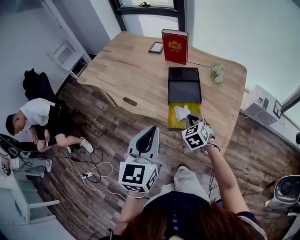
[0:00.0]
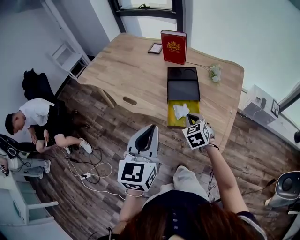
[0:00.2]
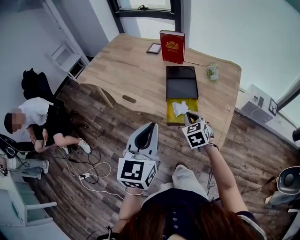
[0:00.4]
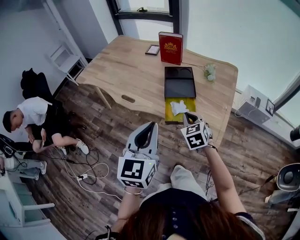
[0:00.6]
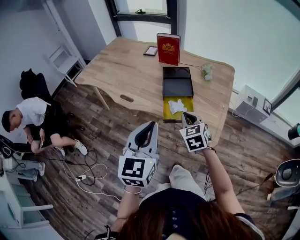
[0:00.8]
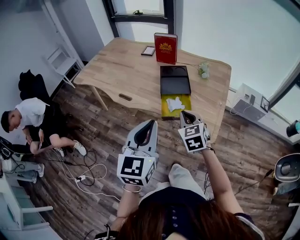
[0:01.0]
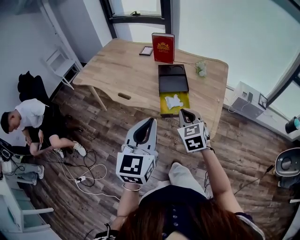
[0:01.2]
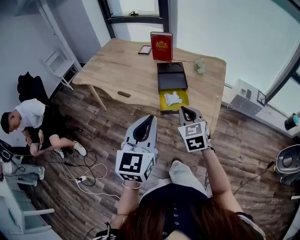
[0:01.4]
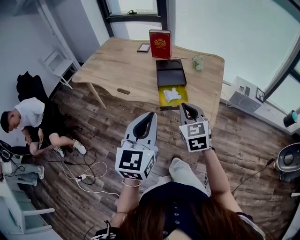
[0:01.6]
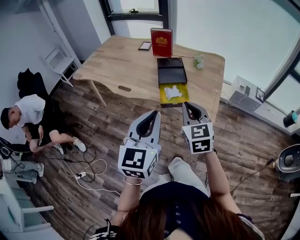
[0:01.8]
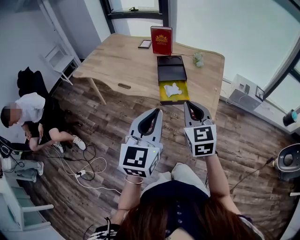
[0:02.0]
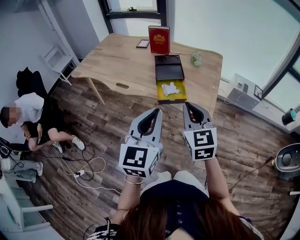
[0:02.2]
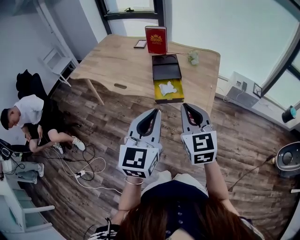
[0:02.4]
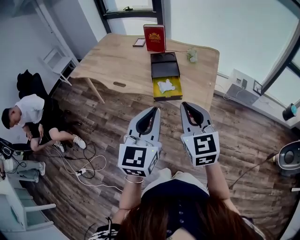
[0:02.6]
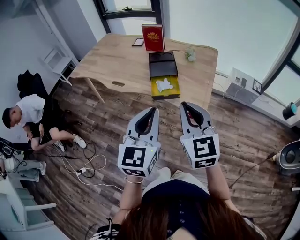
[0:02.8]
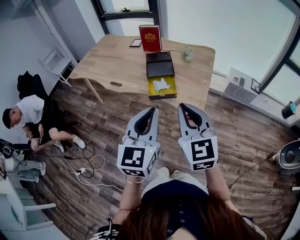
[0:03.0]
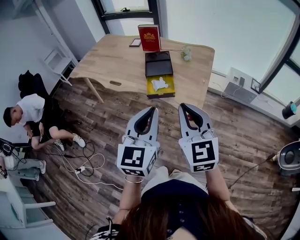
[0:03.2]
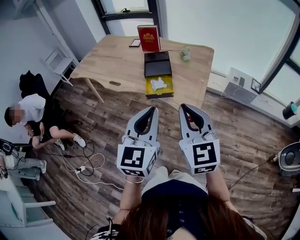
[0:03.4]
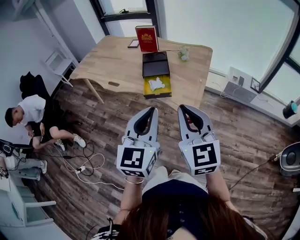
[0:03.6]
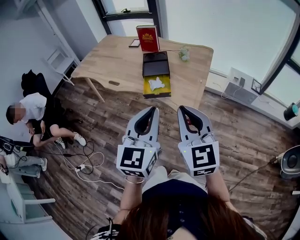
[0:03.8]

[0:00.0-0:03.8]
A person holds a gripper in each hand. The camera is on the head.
0:00.0 to 0:01.2: The right gripper shifts some 15 cm backward and upward. Meanwhile the left gripper moves backward, some 10 cm.
0:01.2 to 0:02.6: The left gripper is displaced backward and to the right by roughly 10 cm. Meanwhile the right gripper is displaced backward and upward by about 20 cm.
0:02.6 to 0:03.8: The left gripper is displaced to the right by about 10 cm, while the right gripper moves to the right and backward, roughly 10 cm.

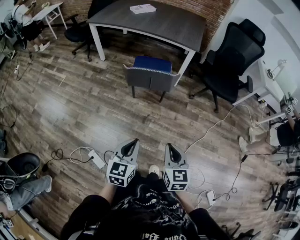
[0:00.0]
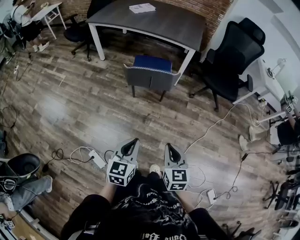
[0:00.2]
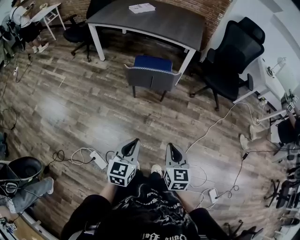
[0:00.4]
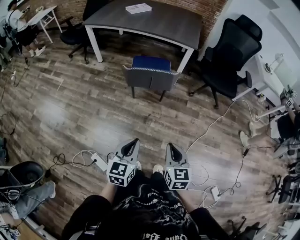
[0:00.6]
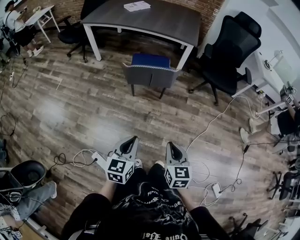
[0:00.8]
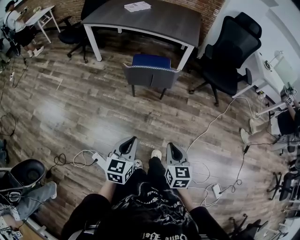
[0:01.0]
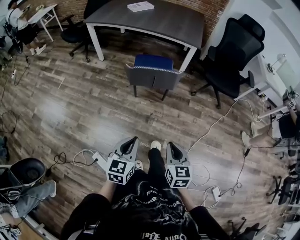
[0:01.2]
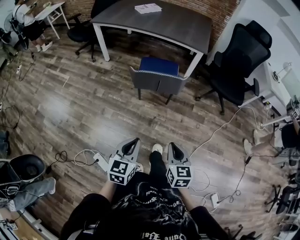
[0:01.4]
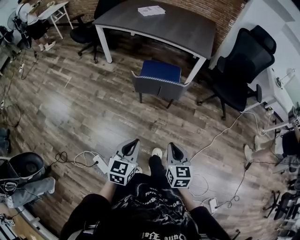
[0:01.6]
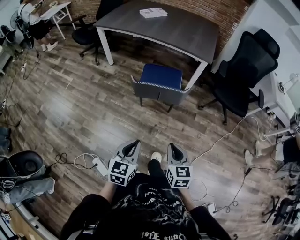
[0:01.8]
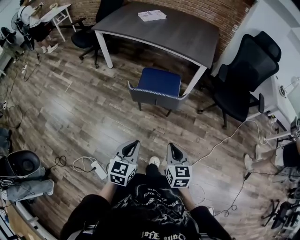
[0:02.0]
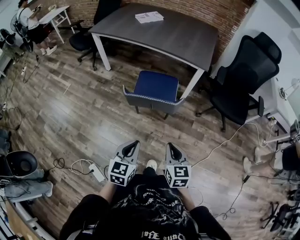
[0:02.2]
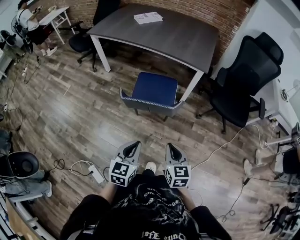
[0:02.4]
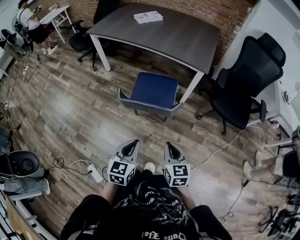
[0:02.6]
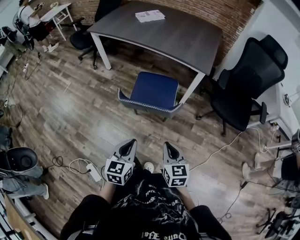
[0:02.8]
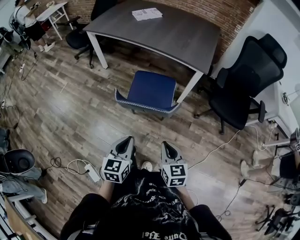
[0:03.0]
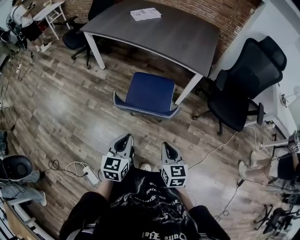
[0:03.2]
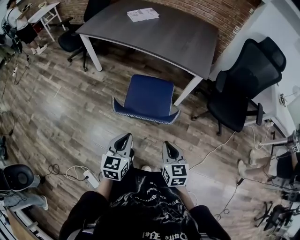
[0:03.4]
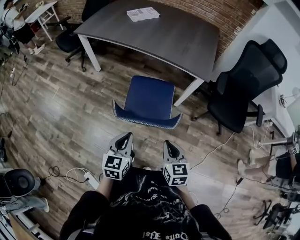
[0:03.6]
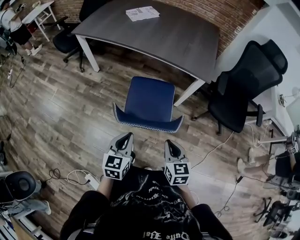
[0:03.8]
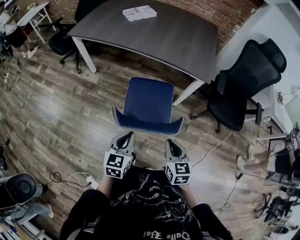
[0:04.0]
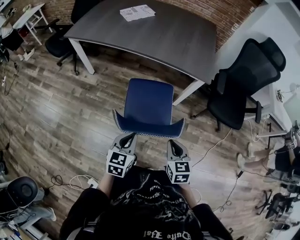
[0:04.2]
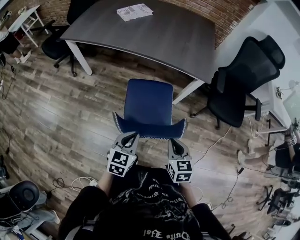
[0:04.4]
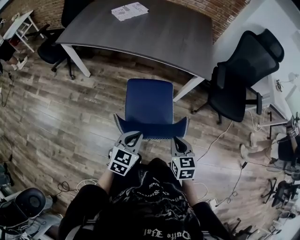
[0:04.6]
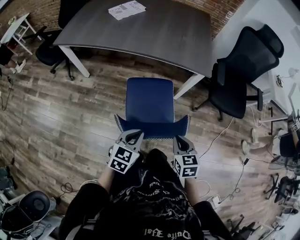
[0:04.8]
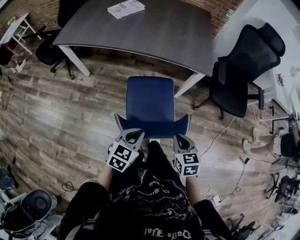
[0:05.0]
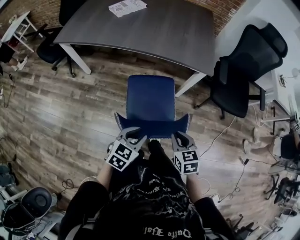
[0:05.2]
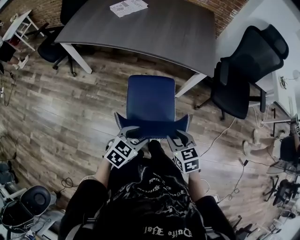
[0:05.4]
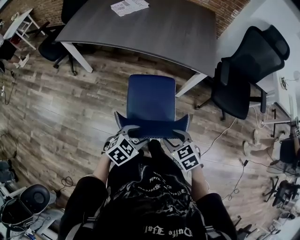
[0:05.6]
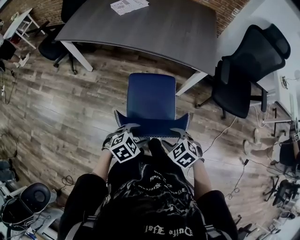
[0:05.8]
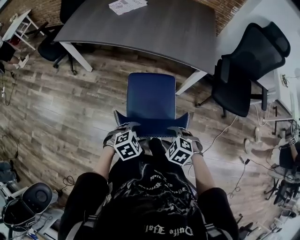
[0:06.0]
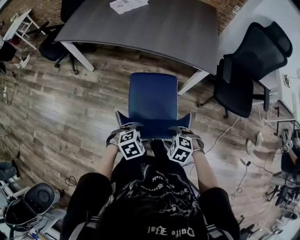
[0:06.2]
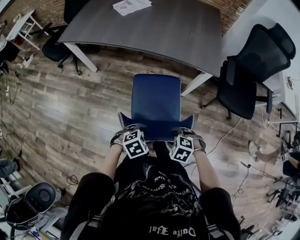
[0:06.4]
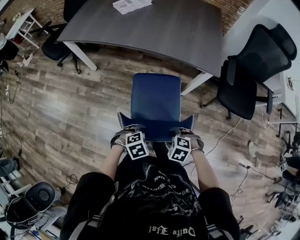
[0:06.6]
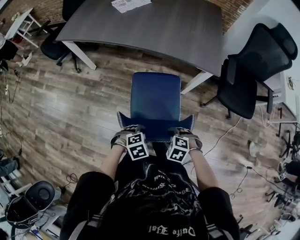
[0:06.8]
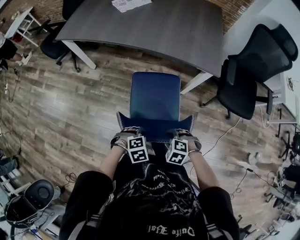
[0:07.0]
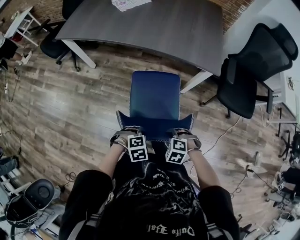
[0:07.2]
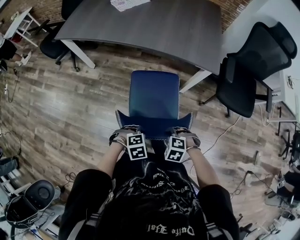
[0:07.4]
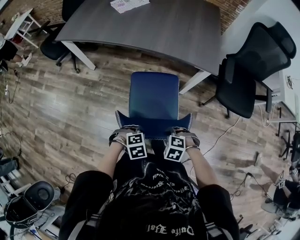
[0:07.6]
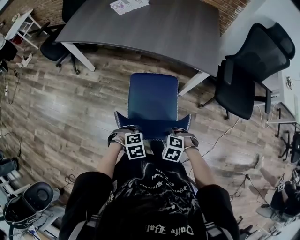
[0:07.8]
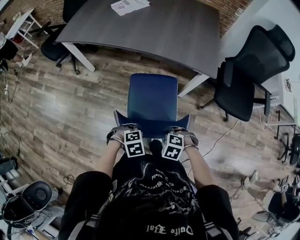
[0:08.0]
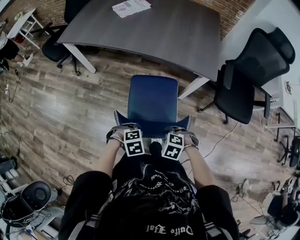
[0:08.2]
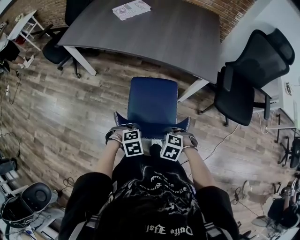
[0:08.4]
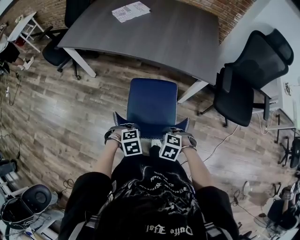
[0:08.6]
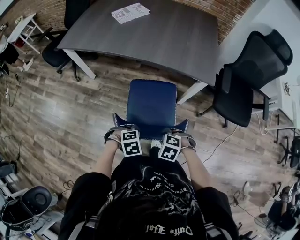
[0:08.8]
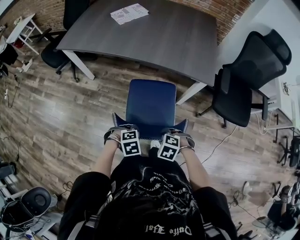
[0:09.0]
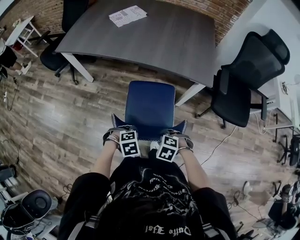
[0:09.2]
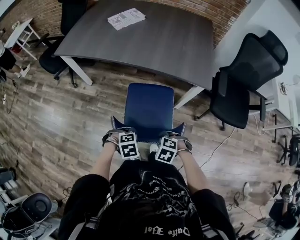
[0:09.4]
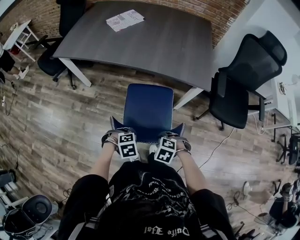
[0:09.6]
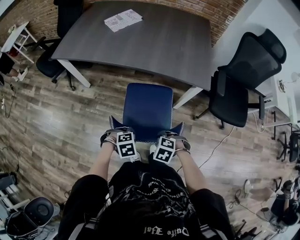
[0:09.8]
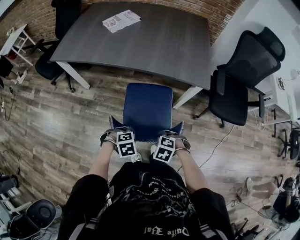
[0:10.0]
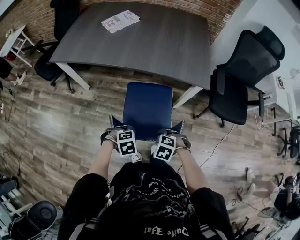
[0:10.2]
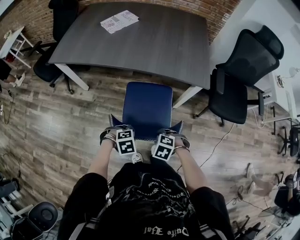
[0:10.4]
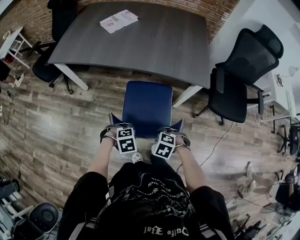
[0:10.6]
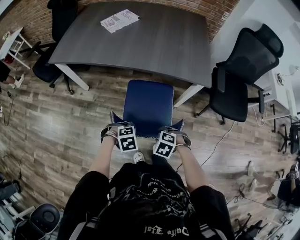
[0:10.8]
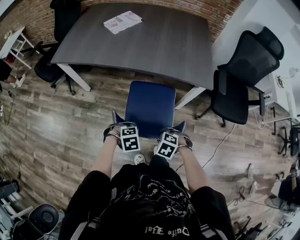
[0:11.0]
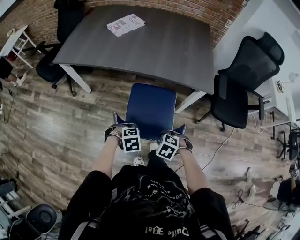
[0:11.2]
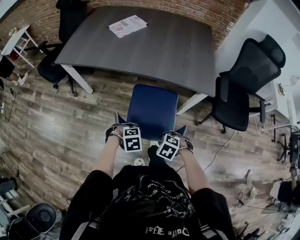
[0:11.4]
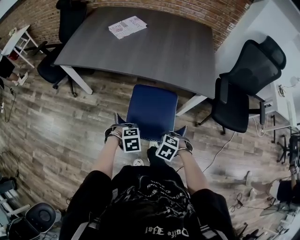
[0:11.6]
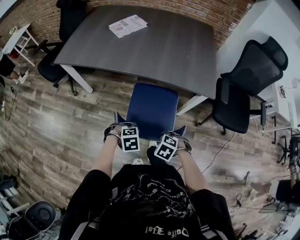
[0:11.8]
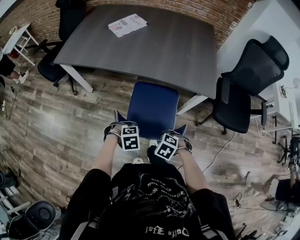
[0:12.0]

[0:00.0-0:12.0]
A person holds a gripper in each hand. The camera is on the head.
0:00.0 to 0:01.6: Both grippers move forward, some 5 cm.
0:01.6 to 0:03.0: Both grippers travel together forward, some 20 cm.
0:03.0 to 0:04.4: The grippers both shift forward by approximately 15 cm. The left gripper rotates some 20 degrees.
0:04.4 to 0:06.0: The two grippers go roughly 5 cm downward. The left gripper tilts its fingers approximately 30 degrees downward, and opens its fingers. Meanwhile the right gripper points its fingers approximately 30 degrees further downward, and opens up.
0:06.0 to 0:07.6: The two grippers go some 5 cm downward. The left gripper closes. Meanwhile the right gripper closes its fingers.
0:07.6 to 0:09.0: The right gripper ends up about 5 cm from where it was. Meanwhile the left gripper ends up approximately 5 cm from where it was.
0:09.0 to 0:10.4: The right gripper moves about 5 cm, while the left gripper changes place by about 5 cm.
0:10.4 to 0:12.0: The grippers stay close to where they were, moving slightly.

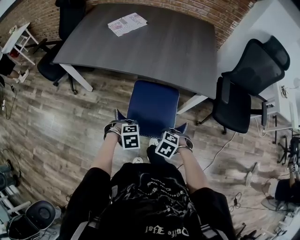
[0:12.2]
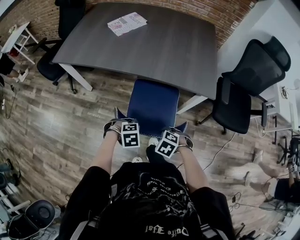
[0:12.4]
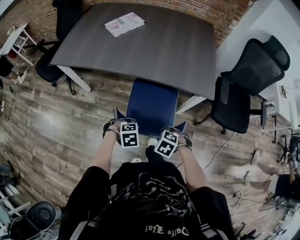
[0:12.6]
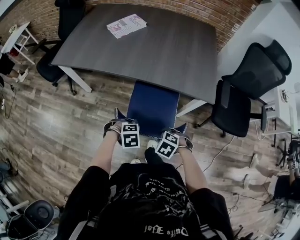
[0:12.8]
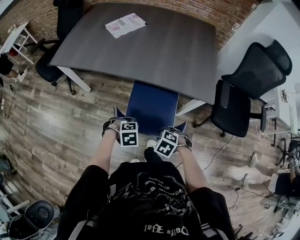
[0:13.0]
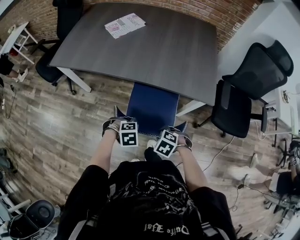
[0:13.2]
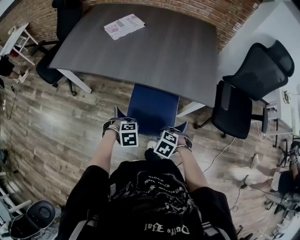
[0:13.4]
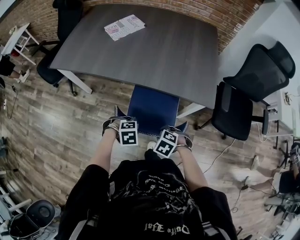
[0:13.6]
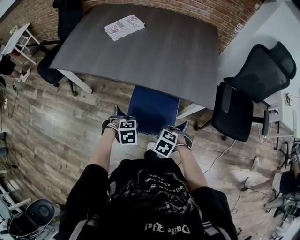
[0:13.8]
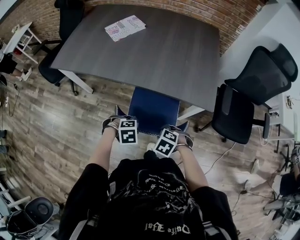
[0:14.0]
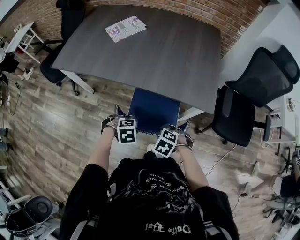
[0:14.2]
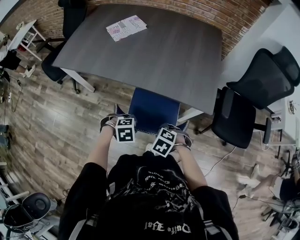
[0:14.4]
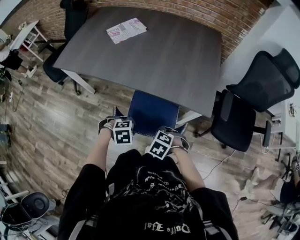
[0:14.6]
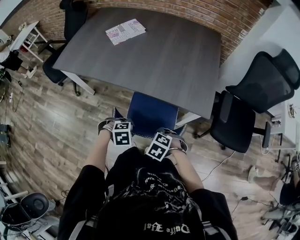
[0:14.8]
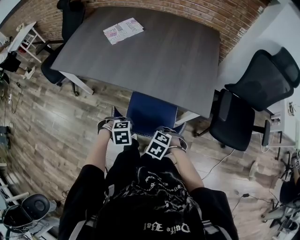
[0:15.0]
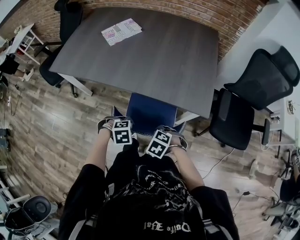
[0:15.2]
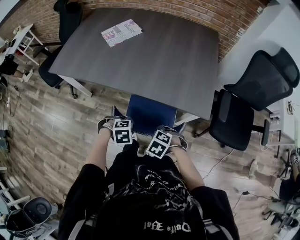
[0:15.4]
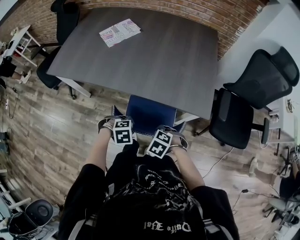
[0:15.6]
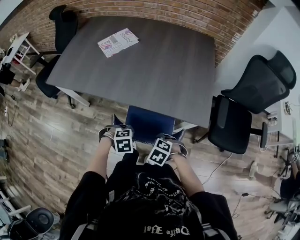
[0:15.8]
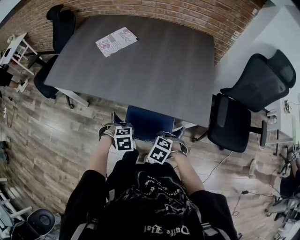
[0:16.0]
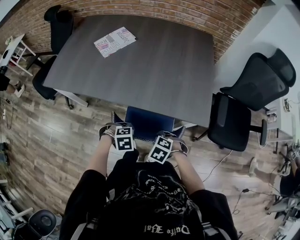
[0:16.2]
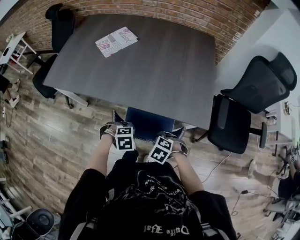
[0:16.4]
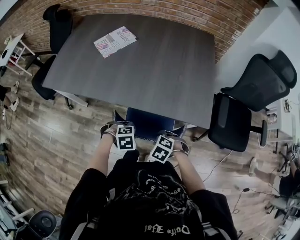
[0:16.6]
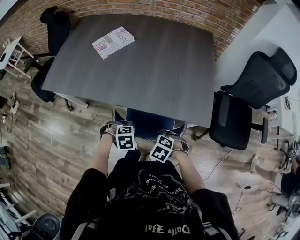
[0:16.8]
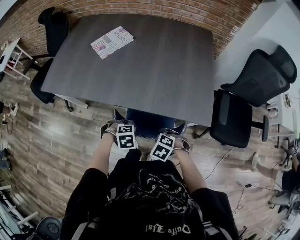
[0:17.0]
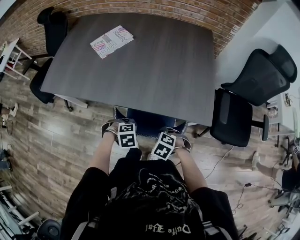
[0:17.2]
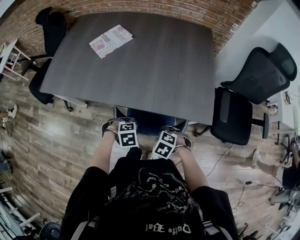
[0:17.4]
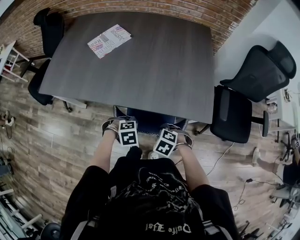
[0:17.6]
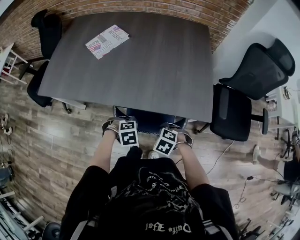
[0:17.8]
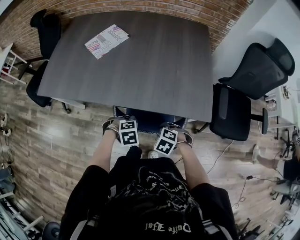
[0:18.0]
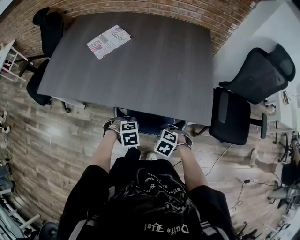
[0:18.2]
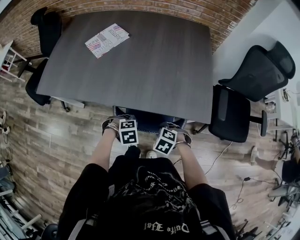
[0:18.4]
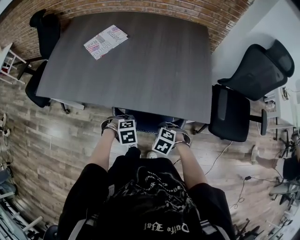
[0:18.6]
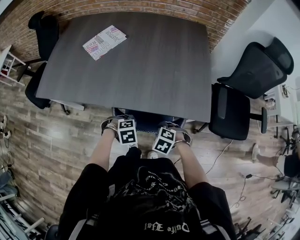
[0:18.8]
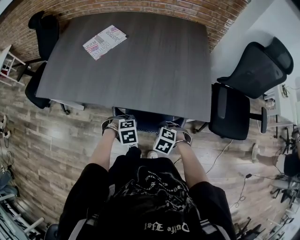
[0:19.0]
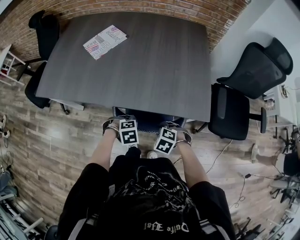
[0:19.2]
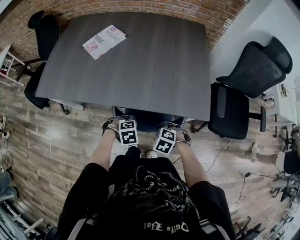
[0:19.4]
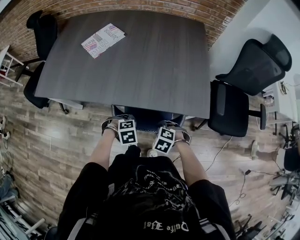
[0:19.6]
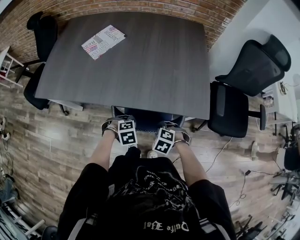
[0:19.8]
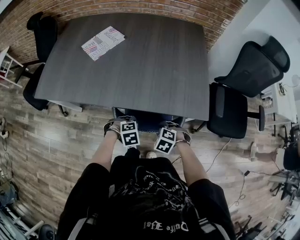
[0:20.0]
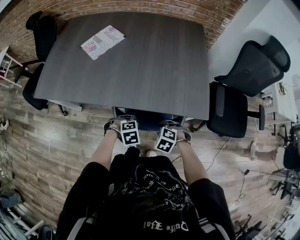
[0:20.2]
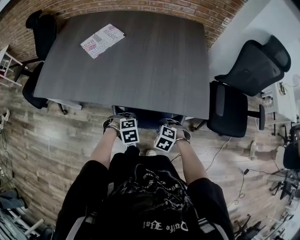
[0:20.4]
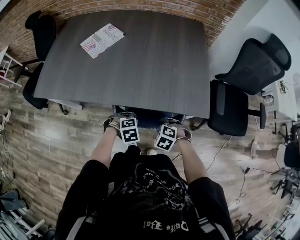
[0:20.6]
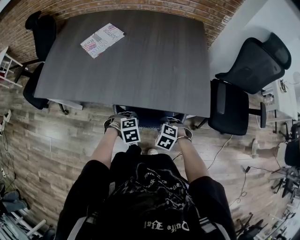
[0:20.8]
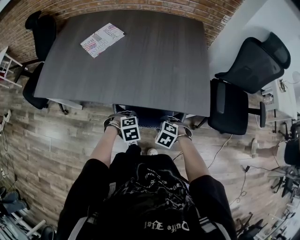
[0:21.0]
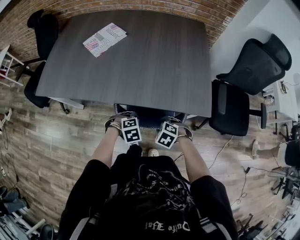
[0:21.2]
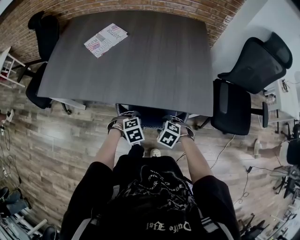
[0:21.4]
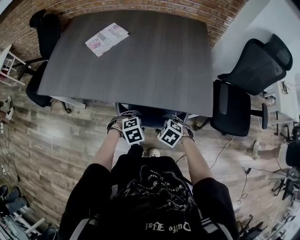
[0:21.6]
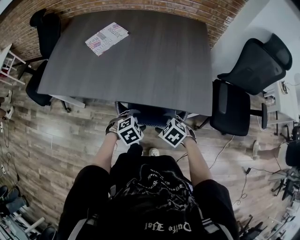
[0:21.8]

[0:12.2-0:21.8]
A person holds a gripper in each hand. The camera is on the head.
0:12.2 to 0:13.8: The right gripper changes place by about 10 cm. Meanwhile the left gripper ends up about 10 cm from where it was.
0:13.8 to 0:15.4: The right gripper ends up about 5 cm from where it was. The left gripper ends up approximately 5 cm from where it was.
0:15.4 to 0:17.0: The right gripper moves roughly 5 cm; the left gripper changes place by some 5 cm.
0:17.0 to 0:20.2: The grippers make only small movements.
0:20.2 to 0:21.8: The right gripper swivels some 20 degrees, and opens; the left gripper rotates roughly 20 degrees, and opens.
